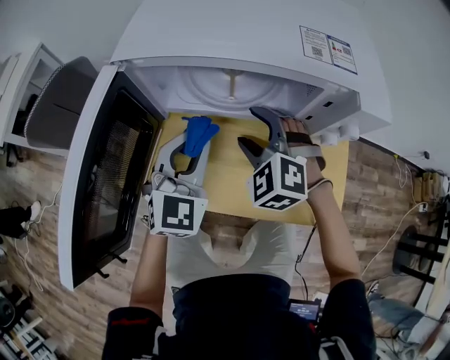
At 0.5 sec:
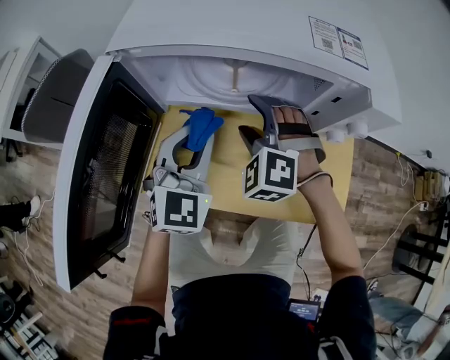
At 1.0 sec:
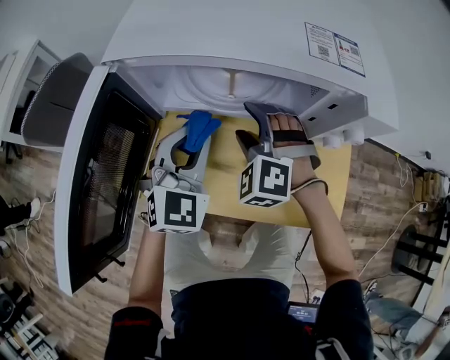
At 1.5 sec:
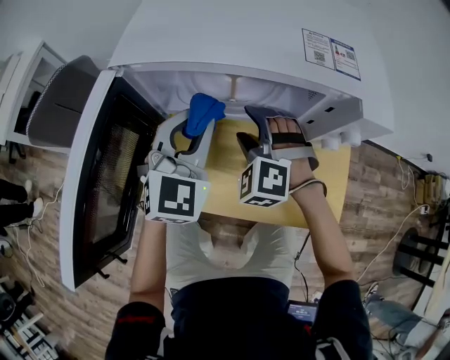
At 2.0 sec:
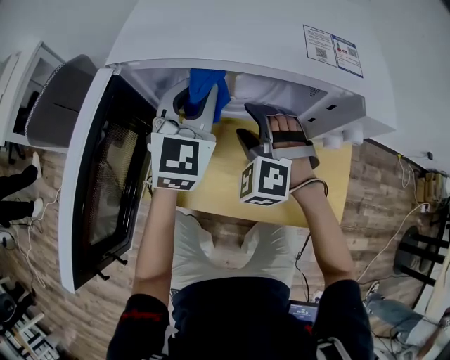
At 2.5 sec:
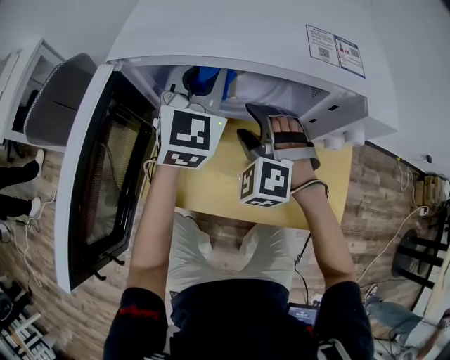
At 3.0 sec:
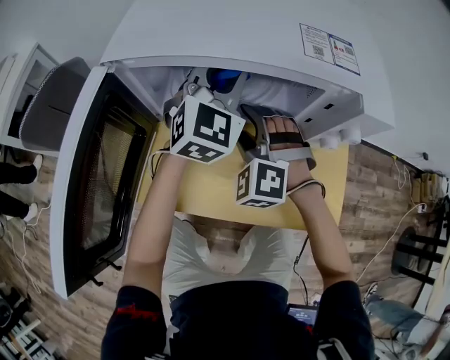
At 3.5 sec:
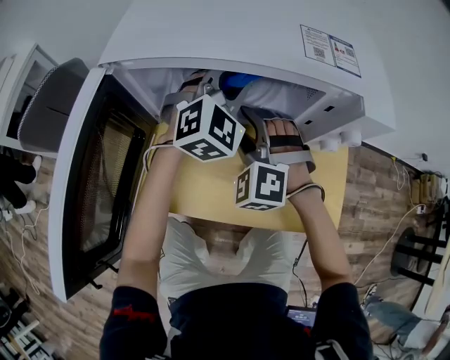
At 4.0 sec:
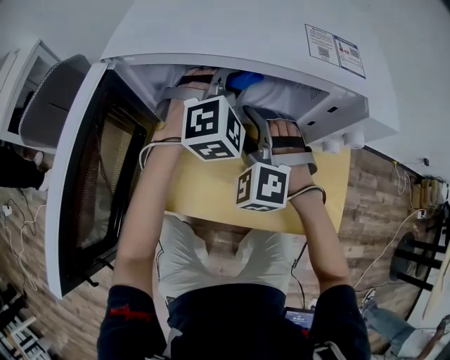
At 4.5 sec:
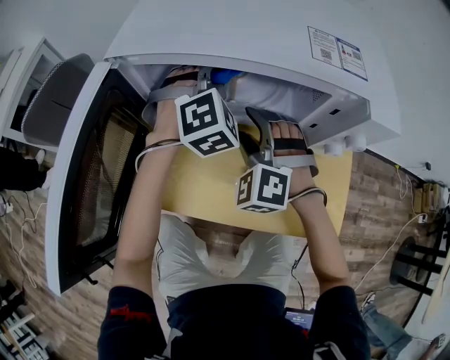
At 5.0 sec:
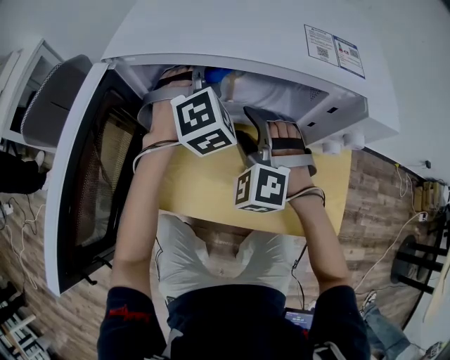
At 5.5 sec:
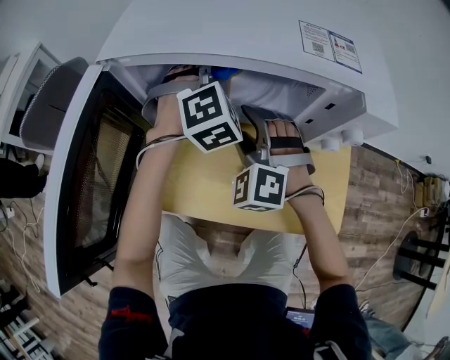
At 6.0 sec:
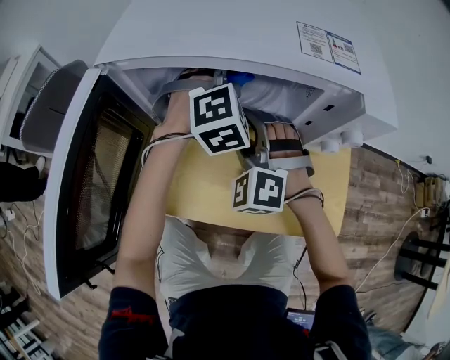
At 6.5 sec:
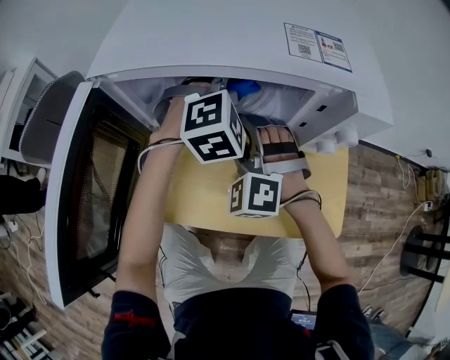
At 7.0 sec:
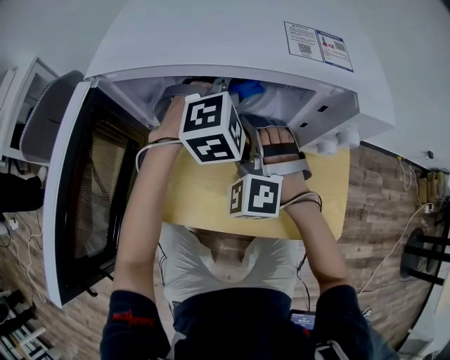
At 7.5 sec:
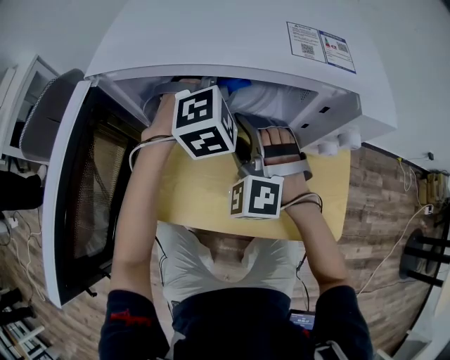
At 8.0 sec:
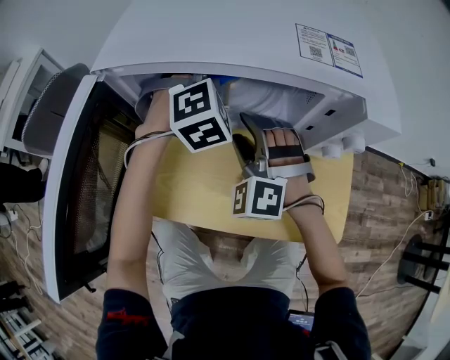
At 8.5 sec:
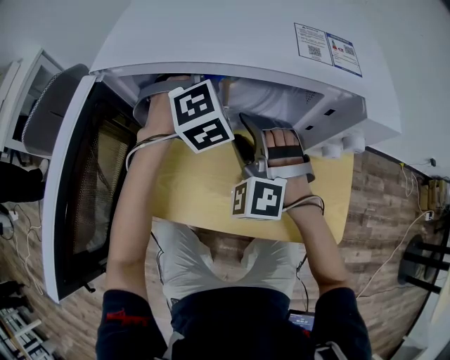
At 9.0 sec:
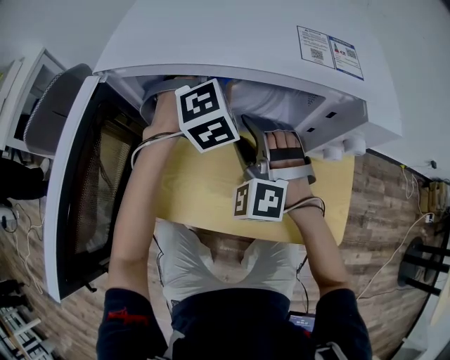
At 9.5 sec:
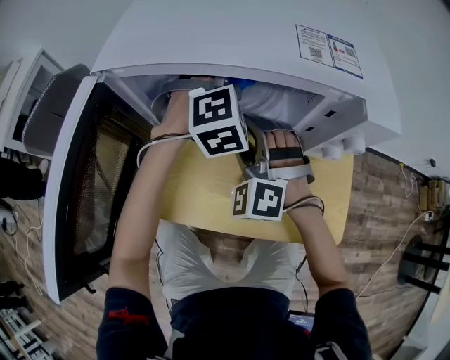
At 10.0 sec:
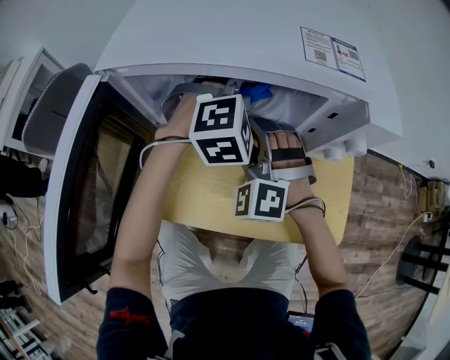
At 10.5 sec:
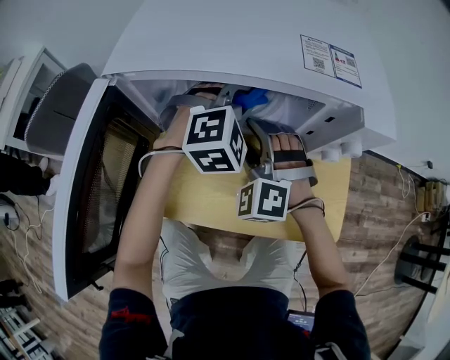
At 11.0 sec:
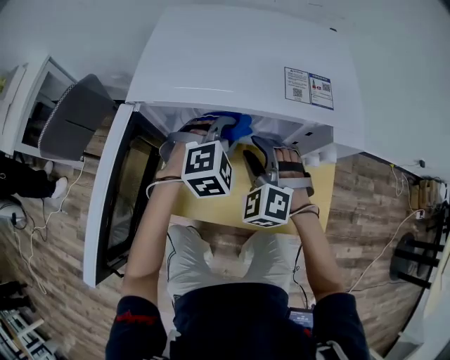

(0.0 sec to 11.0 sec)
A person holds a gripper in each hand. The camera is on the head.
0.0 sec - 2.0 sec: The left gripper is displaced forward and upward by about 10 cm.
2.0 sec - 3.5 sec: The left gripper travels to the right by roughly 10 cm, and rotates about 30 degrees.
3.5 sec - 5.5 sec: The left gripper ends up about 5 cm from where it was, and turns by some 30 degrees.
9.0 sec - 11.0 sec: The left gripper heads backward, covering some 10 cm.

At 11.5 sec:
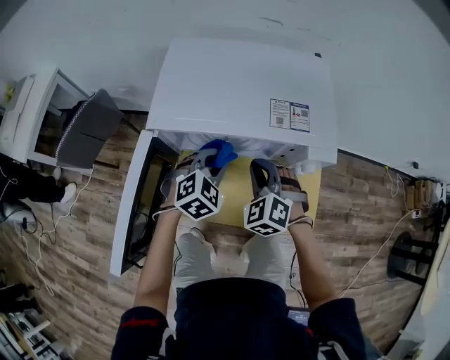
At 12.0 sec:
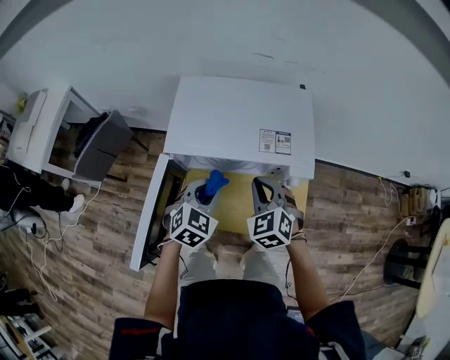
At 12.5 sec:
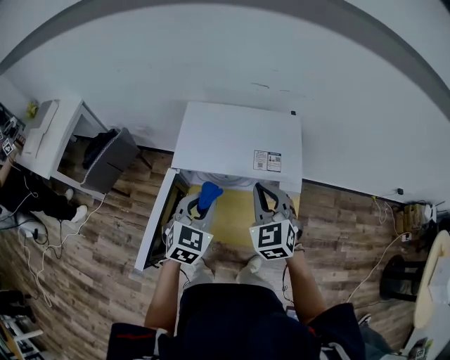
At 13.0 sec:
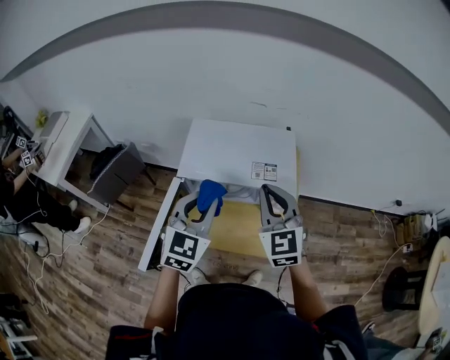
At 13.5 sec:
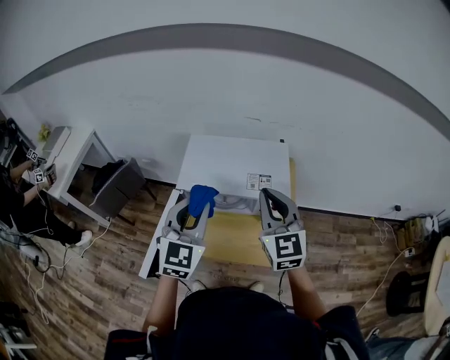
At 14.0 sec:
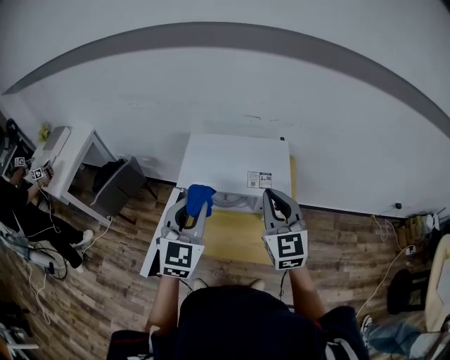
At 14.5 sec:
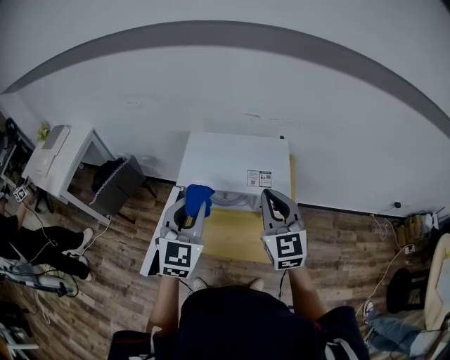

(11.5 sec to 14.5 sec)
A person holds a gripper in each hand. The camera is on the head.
11.5 sec - 13.0 sec: Both grippers travel together upward, some 30 cm. The right gripper changes its angle by roughly 40 degrees. Meanwhile the left gripper swivels approximately 40 degrees.
13.0 sec - 14.5 sec: The grippers make only small movements.

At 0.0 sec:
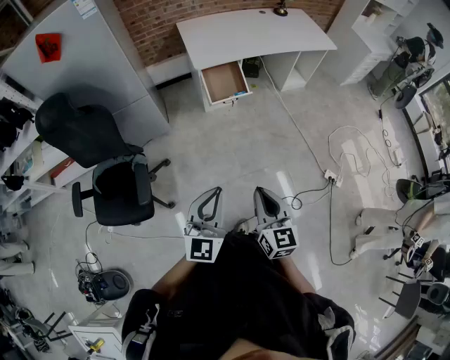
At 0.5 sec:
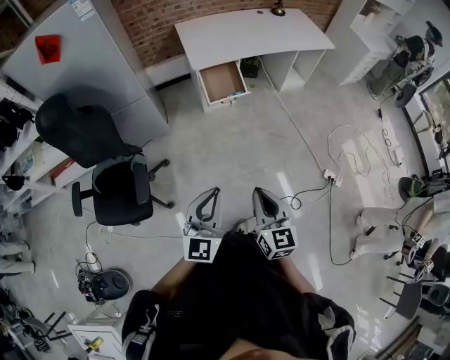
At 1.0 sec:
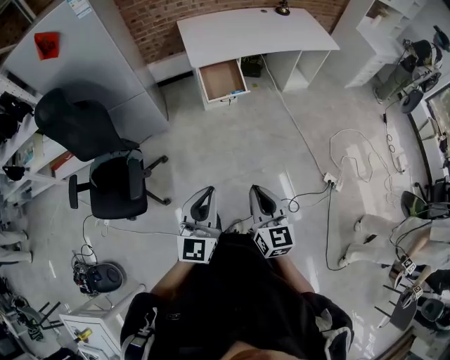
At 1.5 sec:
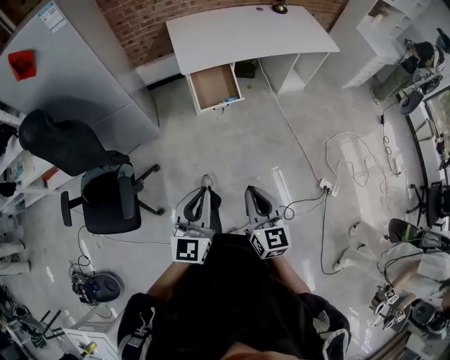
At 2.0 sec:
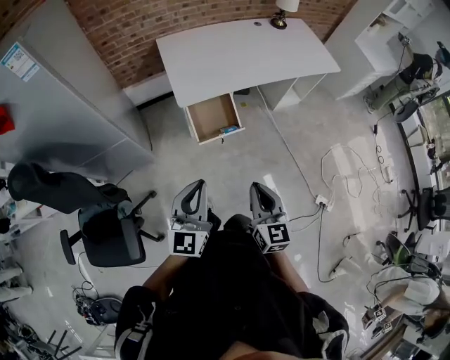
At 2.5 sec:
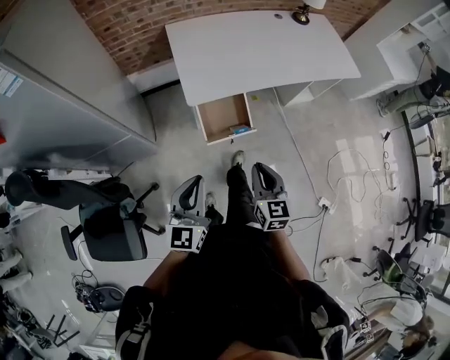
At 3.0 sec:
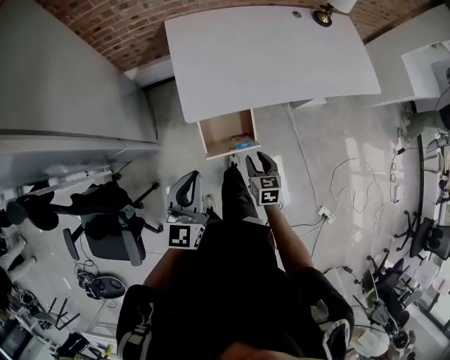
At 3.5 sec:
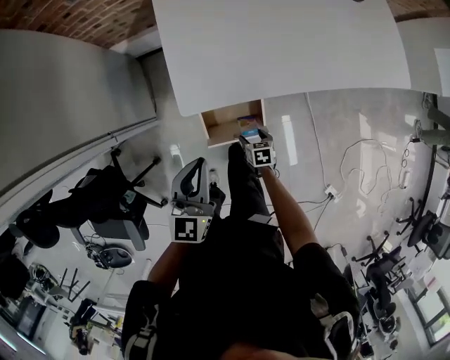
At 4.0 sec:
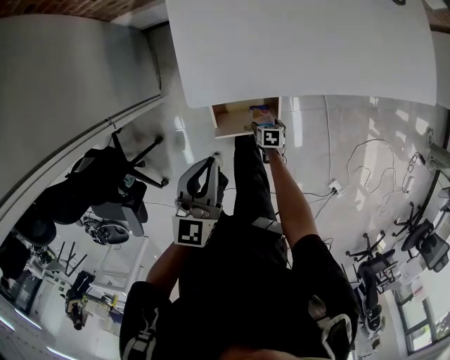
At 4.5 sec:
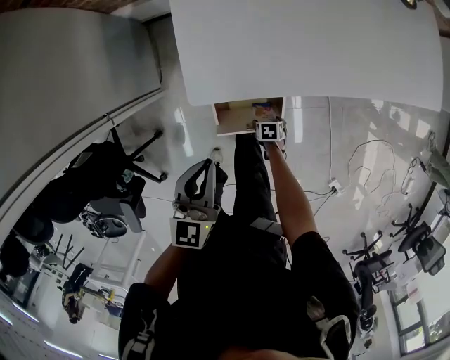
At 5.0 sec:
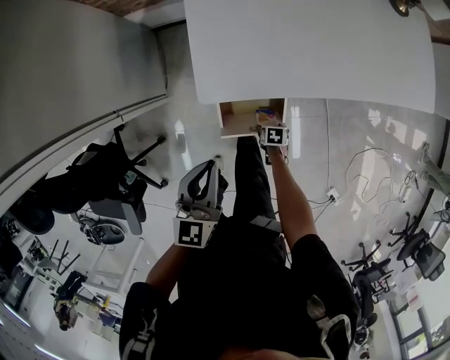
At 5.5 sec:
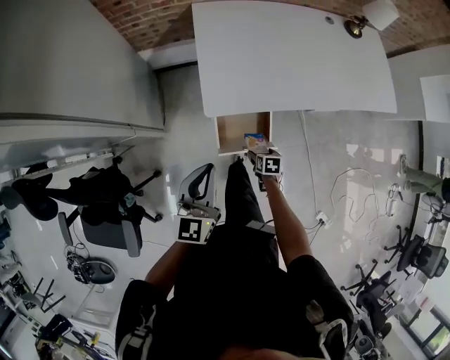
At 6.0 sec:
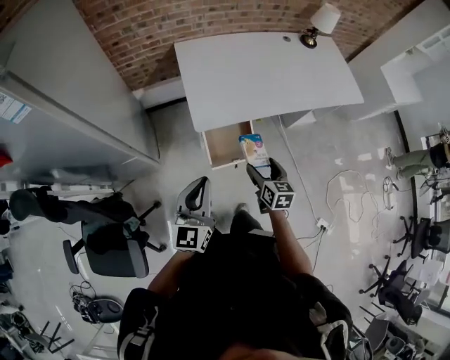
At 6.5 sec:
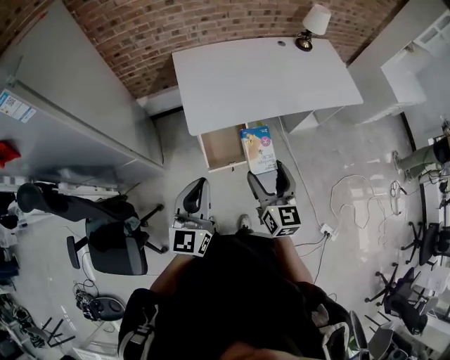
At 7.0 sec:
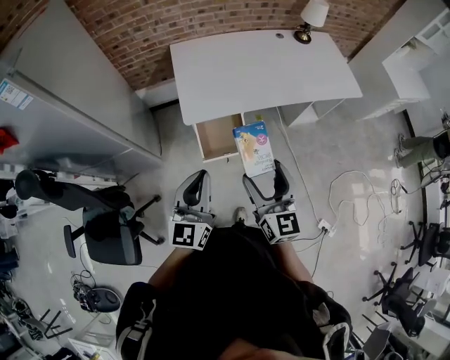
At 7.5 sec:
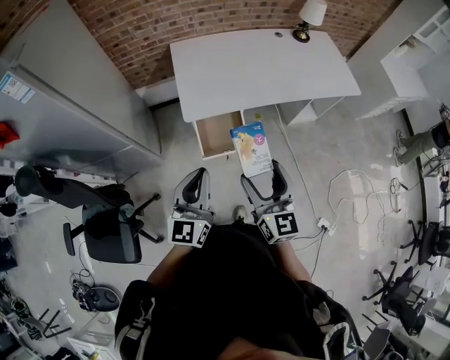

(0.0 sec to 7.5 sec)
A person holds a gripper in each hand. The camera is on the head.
0.0 sec - 2.0 sec: The grippers both shift forward by roughly 35 cm.
2.0 sec - 4.0 sec: The right gripper shifts approximately 70 cm downward and forward, points its fingers approximately 60 degrees further downward, and opens. Meanwhile the left gripper heads forward and downward, covering about 40 cm, and swivels about 20 degrees.
4.0 sec - 5.5 sec: The left gripper changes place by some 15 cm. The right gripper is displaced upward by roughly 20 cm.
5.5 sec - 7.5 sec: The left gripper is displaced backward, upward and to the right by about 25 cm; the right gripper heads upward and backward, covering approximately 50 cm, and tips its fingers upward by approximately 60 degrees.

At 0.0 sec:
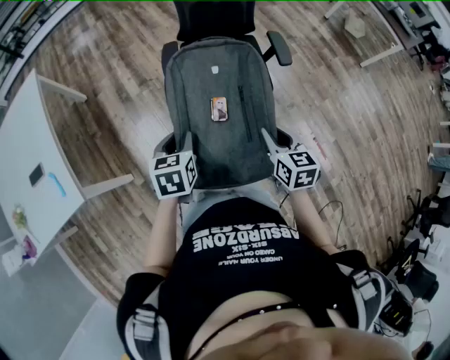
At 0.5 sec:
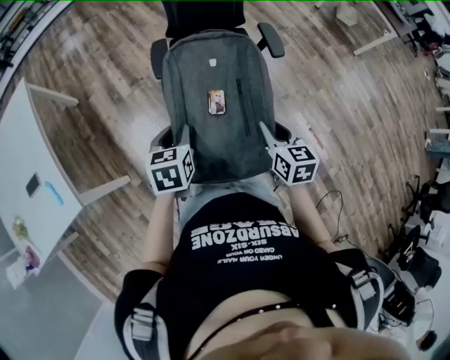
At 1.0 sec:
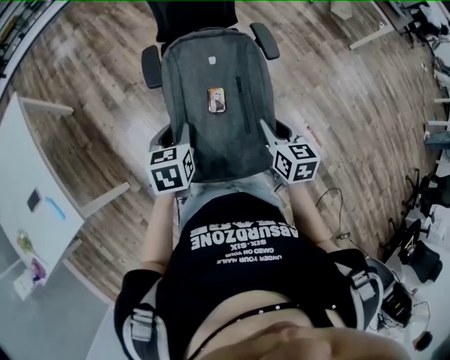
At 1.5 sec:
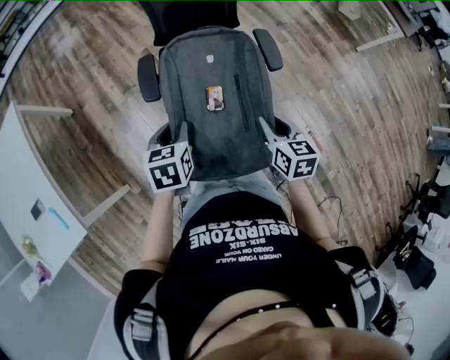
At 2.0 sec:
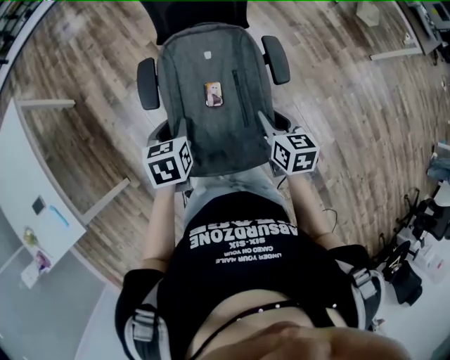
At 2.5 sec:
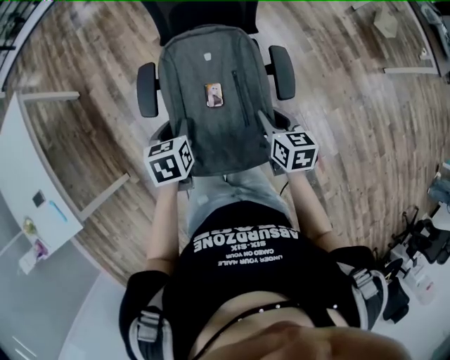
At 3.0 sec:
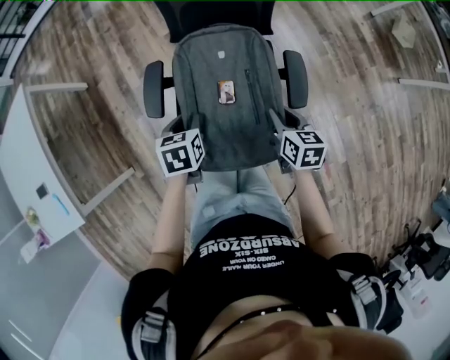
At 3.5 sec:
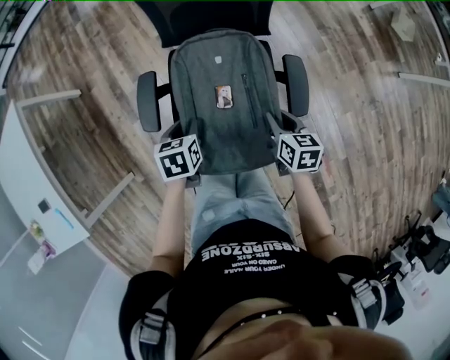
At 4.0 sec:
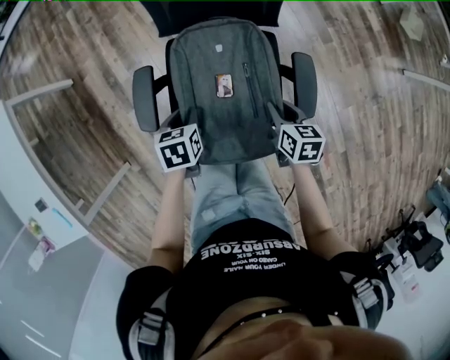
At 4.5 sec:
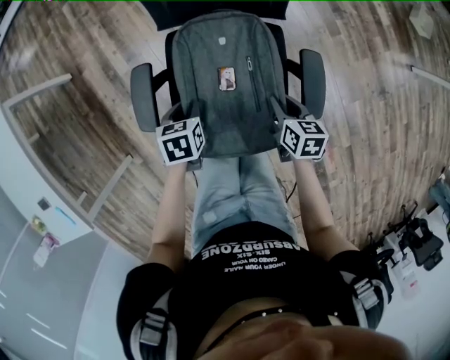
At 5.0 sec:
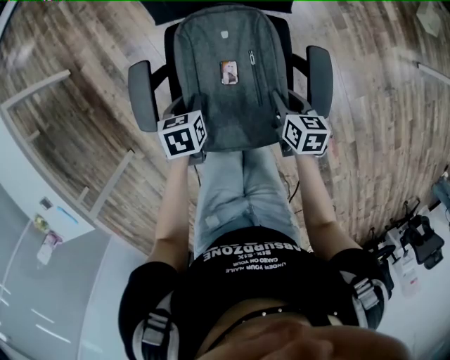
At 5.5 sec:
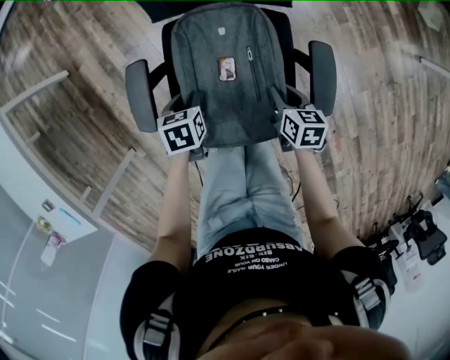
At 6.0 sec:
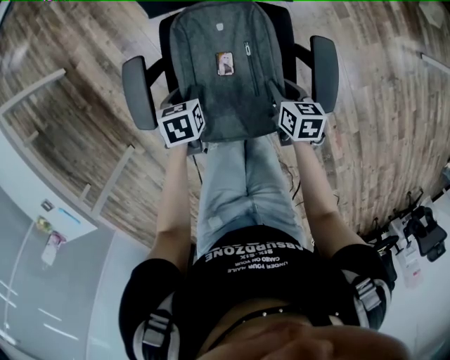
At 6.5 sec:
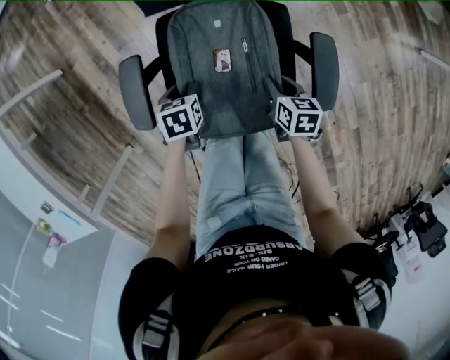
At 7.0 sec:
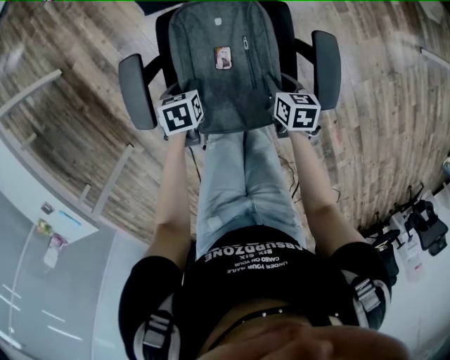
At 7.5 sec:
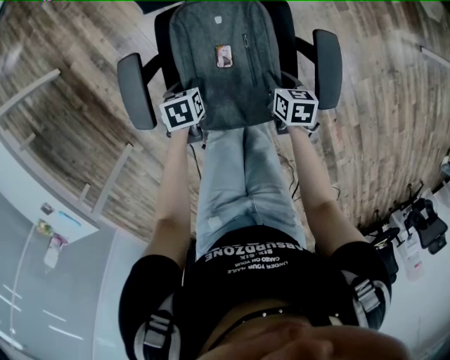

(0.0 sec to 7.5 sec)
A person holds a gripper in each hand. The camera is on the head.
0.0 sec - 2.0 sec: Both grippers travel together forward, some 25 cm.
2.0 sec - 4.0 sec: Both grippers move forward and downward, some 25 cm.
4.0 sec - 5.5 sec: Both grippers travel together downward, about 10 cm.
5.5 sec - 7.5 sec: Both grippers move downward, some 10 cm.
